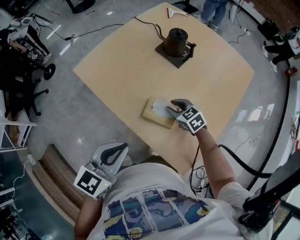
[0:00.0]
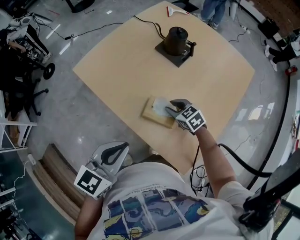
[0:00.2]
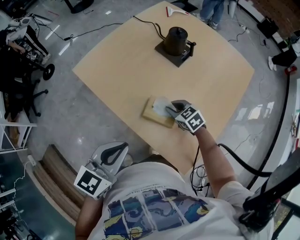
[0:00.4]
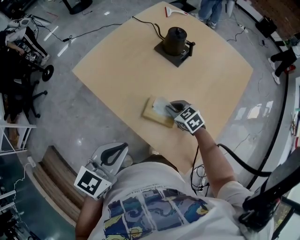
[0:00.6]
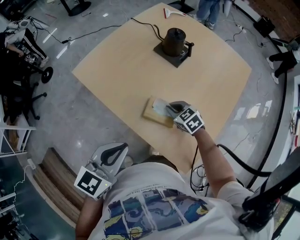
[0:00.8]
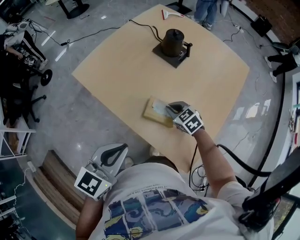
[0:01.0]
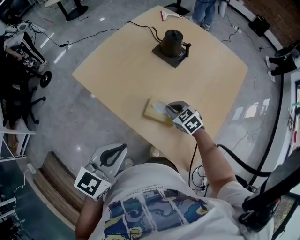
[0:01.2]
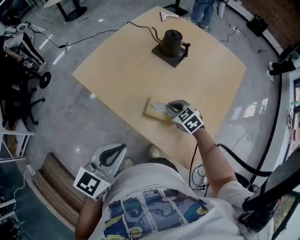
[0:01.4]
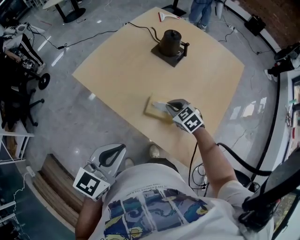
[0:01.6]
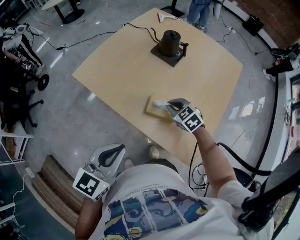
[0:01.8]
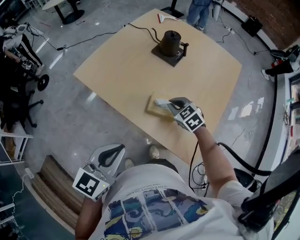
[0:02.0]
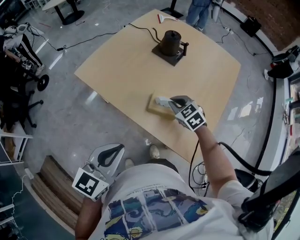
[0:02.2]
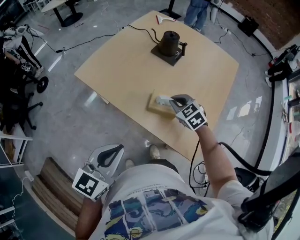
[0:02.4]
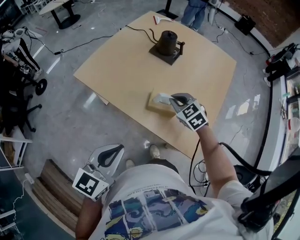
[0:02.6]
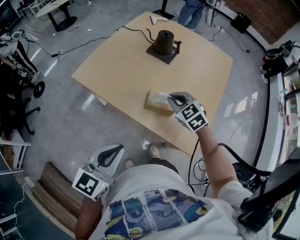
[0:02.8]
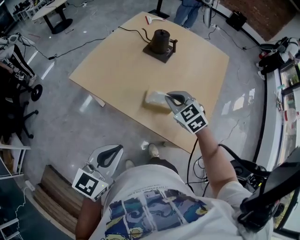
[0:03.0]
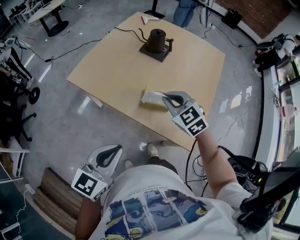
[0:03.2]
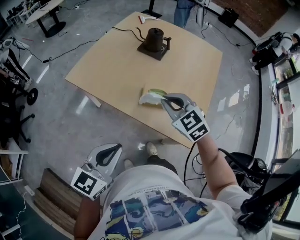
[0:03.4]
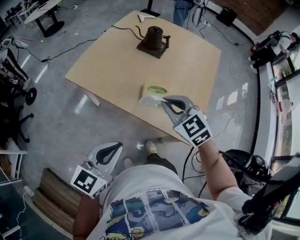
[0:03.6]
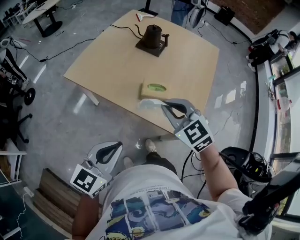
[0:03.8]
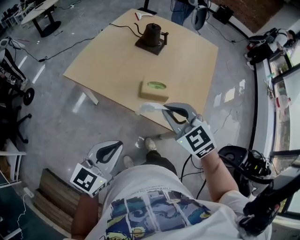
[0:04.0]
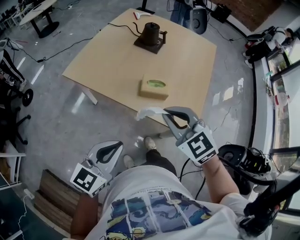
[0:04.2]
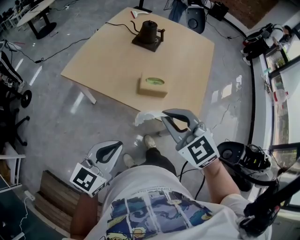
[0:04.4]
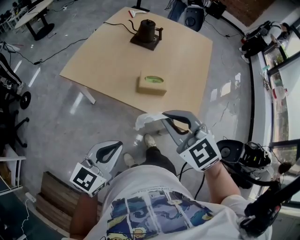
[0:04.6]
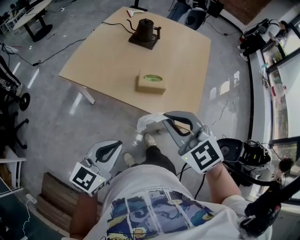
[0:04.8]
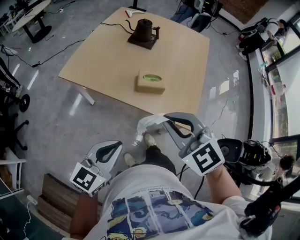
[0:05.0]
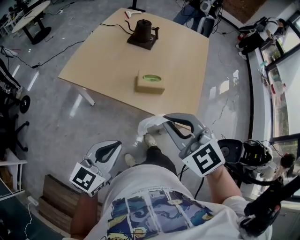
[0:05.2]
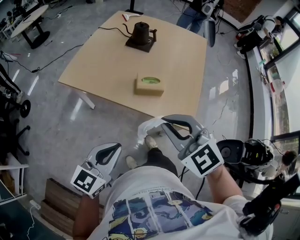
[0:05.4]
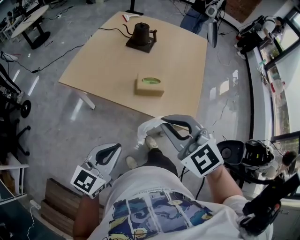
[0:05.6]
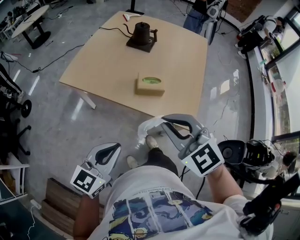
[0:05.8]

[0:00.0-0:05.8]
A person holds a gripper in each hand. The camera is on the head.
0.0 to 1.4 s: The right gripper closes up.
1.4 to 2.8 s: The left gripper is displaced backward and to the left by approximately 10 cm; the right gripper goes about 10 cm upward.
2.8 to 4.4 s: The right gripper travels backward and upward by some 25 cm. The left gripper travels backward by some 5 cm.
4.4 to 5.8 s: There are only small adjustments of the grippers.

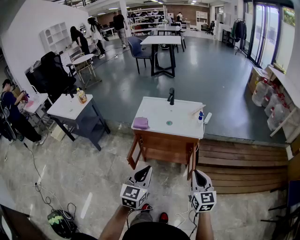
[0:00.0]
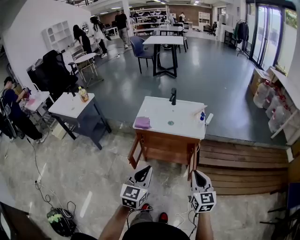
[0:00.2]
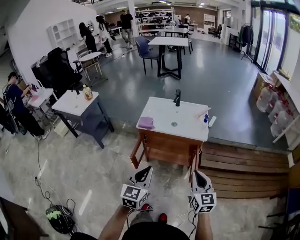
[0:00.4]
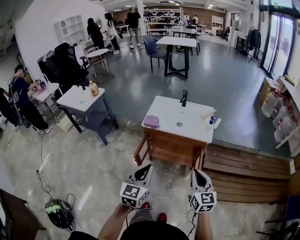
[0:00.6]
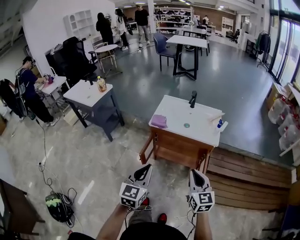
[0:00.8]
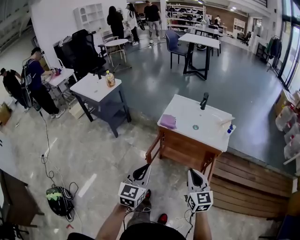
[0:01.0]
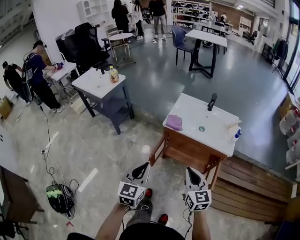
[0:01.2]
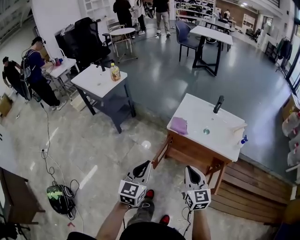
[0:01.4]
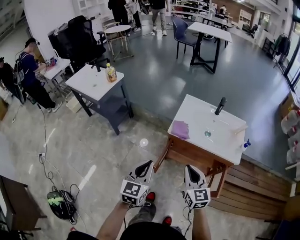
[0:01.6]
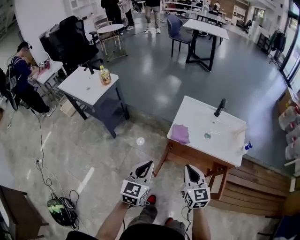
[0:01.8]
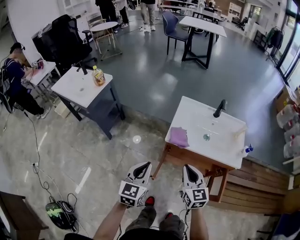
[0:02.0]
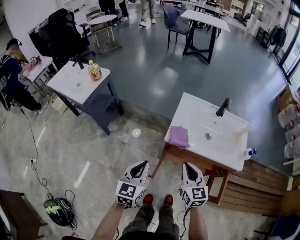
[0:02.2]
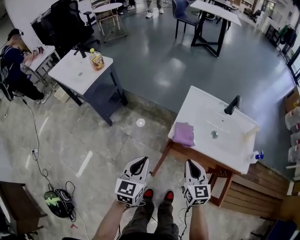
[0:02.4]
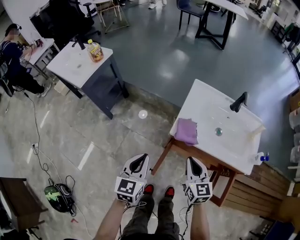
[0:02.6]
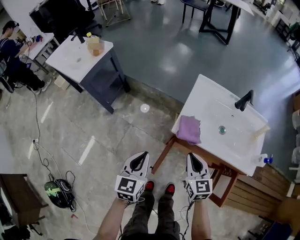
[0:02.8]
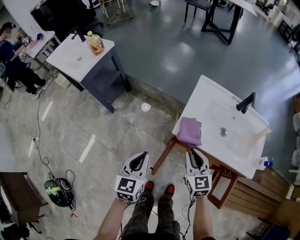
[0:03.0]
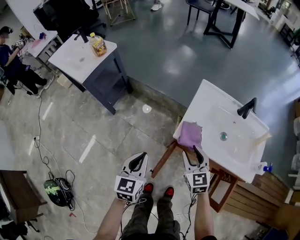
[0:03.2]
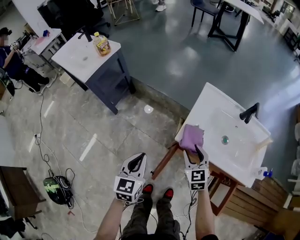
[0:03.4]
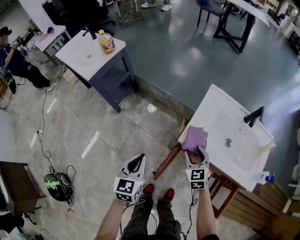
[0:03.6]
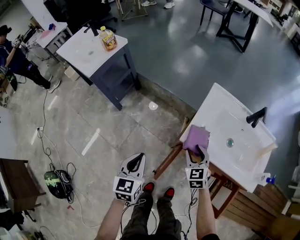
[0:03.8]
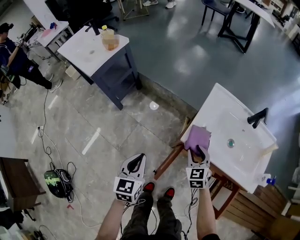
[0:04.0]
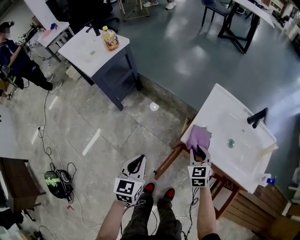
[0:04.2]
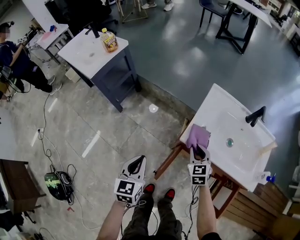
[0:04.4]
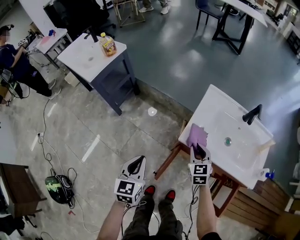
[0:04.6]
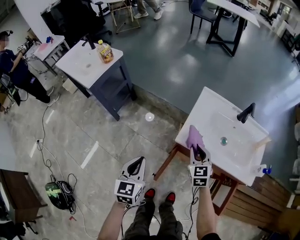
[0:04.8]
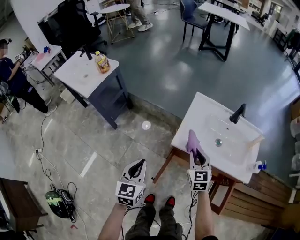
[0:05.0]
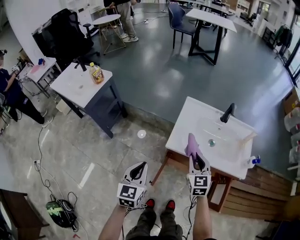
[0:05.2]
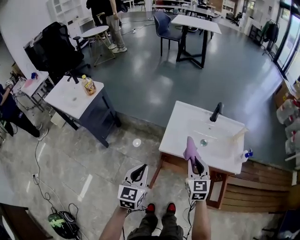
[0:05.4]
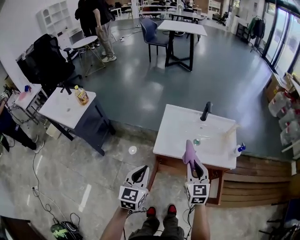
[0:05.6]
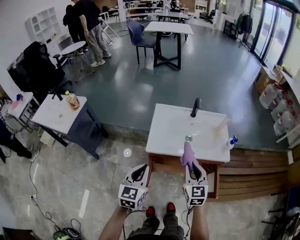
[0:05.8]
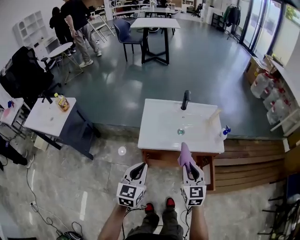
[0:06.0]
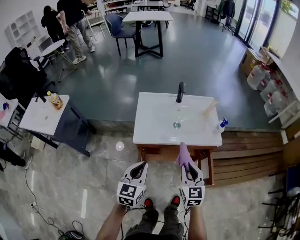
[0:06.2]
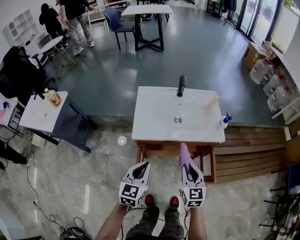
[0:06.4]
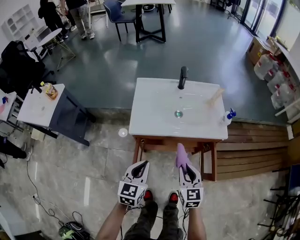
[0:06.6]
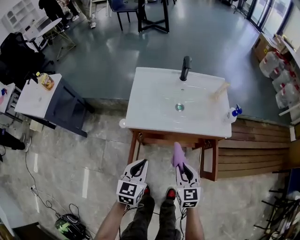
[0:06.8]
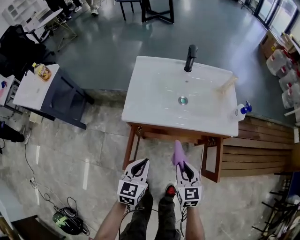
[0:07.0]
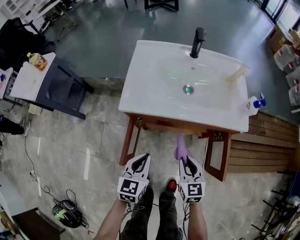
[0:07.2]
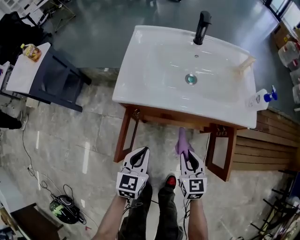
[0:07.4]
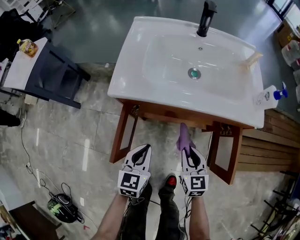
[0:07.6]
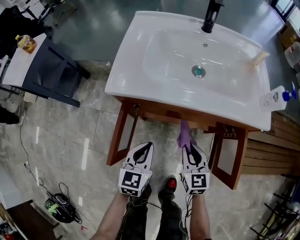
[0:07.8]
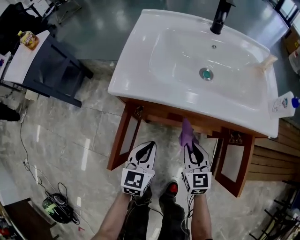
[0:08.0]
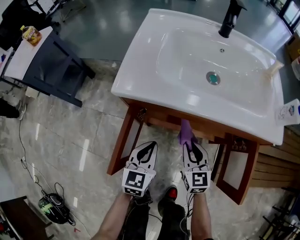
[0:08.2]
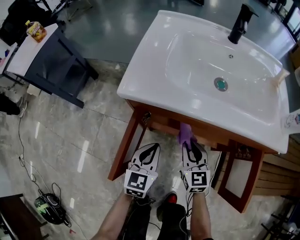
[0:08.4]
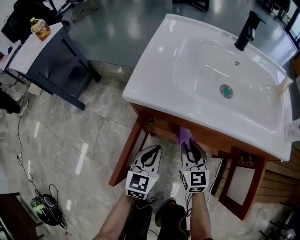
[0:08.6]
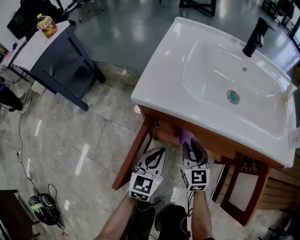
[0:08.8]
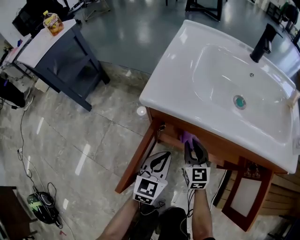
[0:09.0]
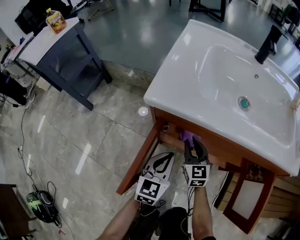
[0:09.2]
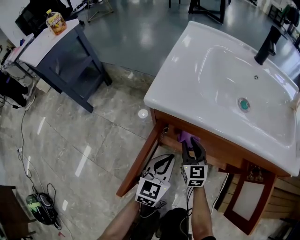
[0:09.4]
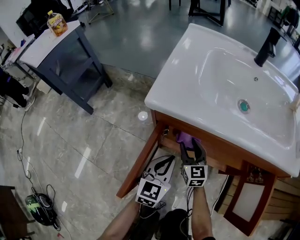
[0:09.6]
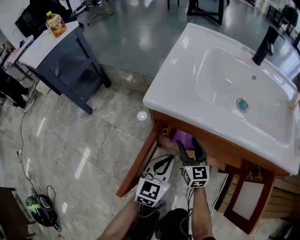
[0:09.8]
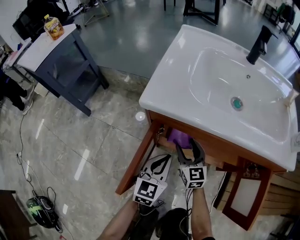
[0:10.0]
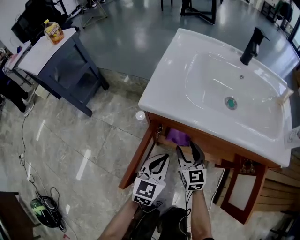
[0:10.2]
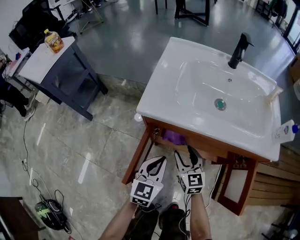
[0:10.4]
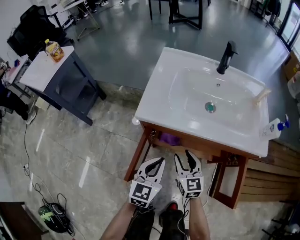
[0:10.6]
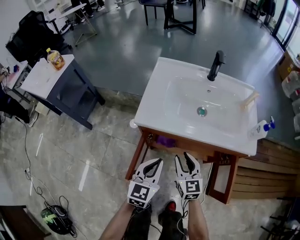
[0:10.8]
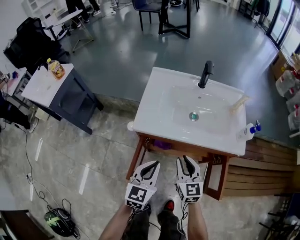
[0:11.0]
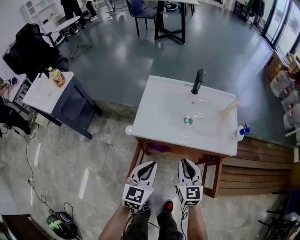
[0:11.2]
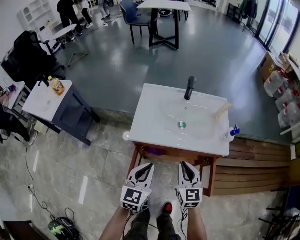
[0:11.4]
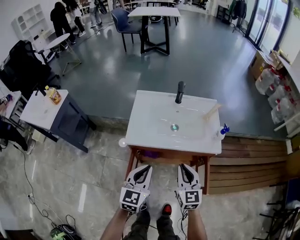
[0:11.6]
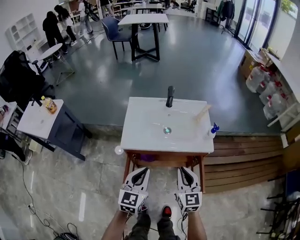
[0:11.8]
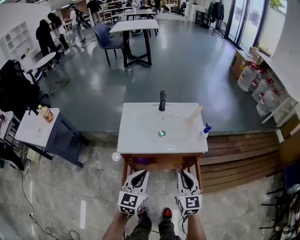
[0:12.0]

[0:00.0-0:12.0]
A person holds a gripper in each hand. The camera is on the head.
0.0 to 1.6 s: Both grippers travel together to the left and forward, roughly 30 cm.
1.6 to 3.0 s: The two grippers go roughly 25 cm forward and downward.
3.0 to 4.4 s: The right gripper is displaced downward and forward by about 10 cm, and opens, then closes once more.
4.4 to 6.0 s: The left gripper shifts by roughly 20 cm, and turns by roughly 30 degrees. Meanwhile the right gripper shifts by roughly 30 cm, and swivels roughly 40 degrees.
6.0 to 7.6 s: The two grippers go roughly 35 cm downward.
7.6 to 9.0 s: The left gripper travels downward and forward by approximately 15 cm; the right gripper shifts roughly 25 cm forward, downward and to the left.
9.0 to 10.4 s: The left gripper travels upward by roughly 10 cm; the right gripper heads upward and backward, covering approximately 10 cm, and opens.
10.4 to 12.0 s: The right gripper travels upward and to the right by roughly 40 cm, swivels about 20 degrees, and closes up, while the left gripper is displaced upward by approximately 35 cm.

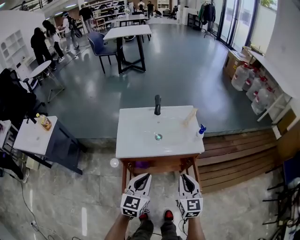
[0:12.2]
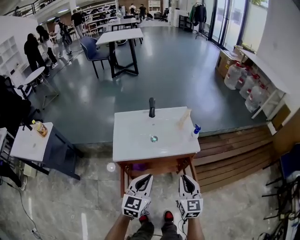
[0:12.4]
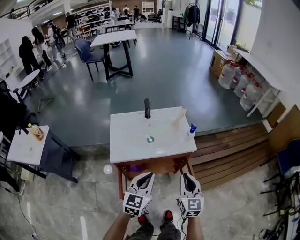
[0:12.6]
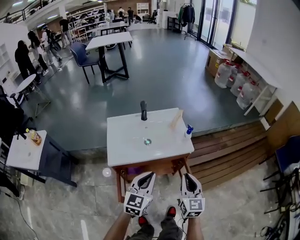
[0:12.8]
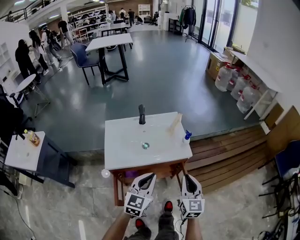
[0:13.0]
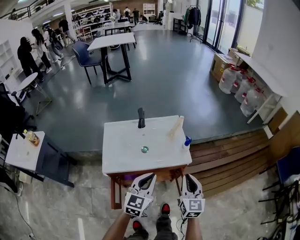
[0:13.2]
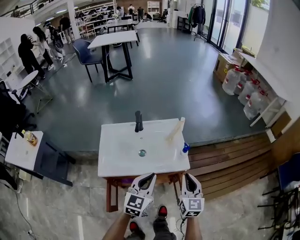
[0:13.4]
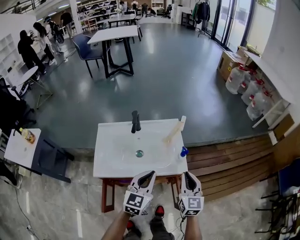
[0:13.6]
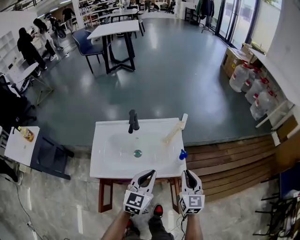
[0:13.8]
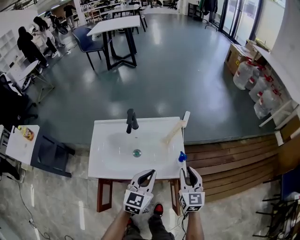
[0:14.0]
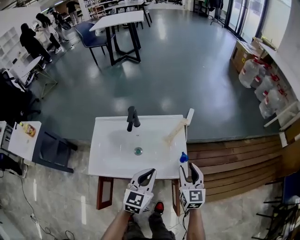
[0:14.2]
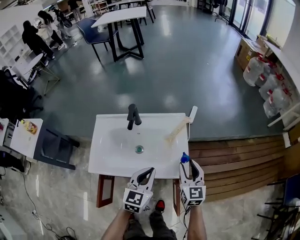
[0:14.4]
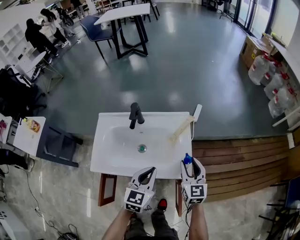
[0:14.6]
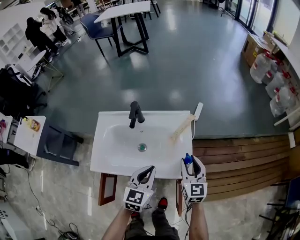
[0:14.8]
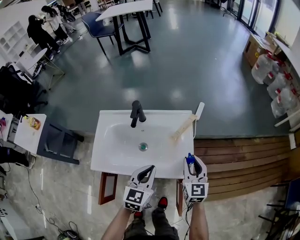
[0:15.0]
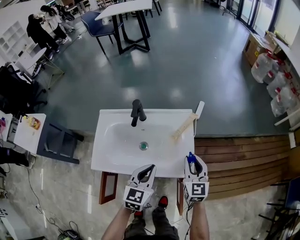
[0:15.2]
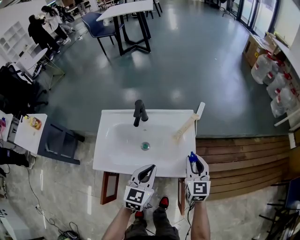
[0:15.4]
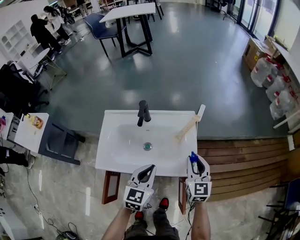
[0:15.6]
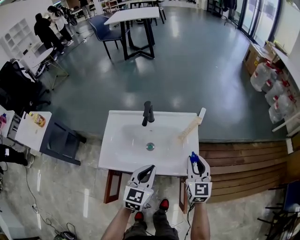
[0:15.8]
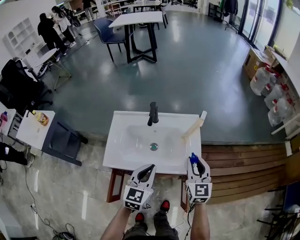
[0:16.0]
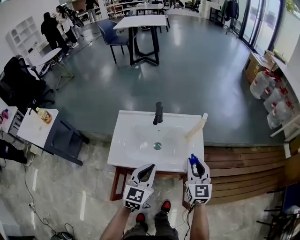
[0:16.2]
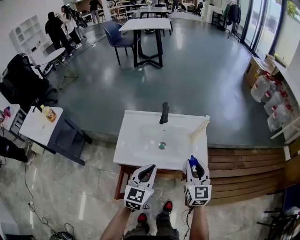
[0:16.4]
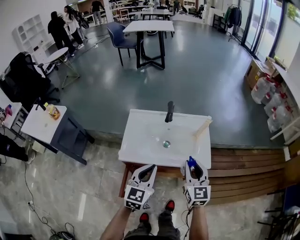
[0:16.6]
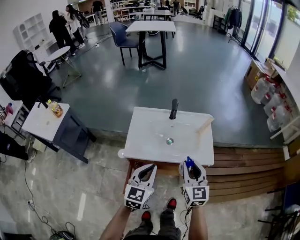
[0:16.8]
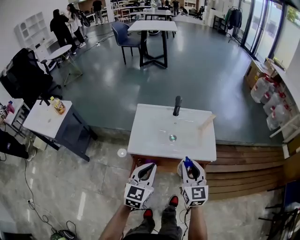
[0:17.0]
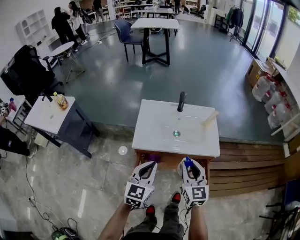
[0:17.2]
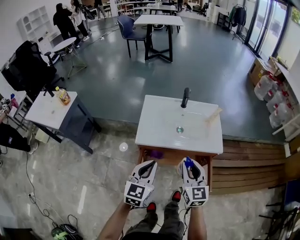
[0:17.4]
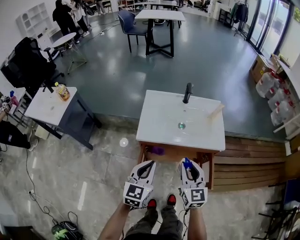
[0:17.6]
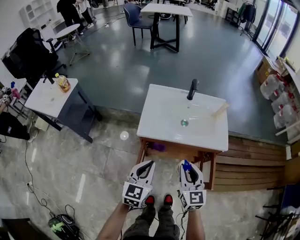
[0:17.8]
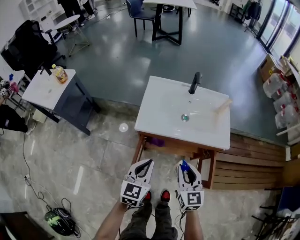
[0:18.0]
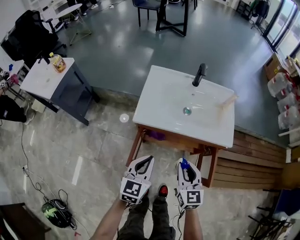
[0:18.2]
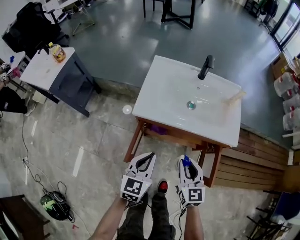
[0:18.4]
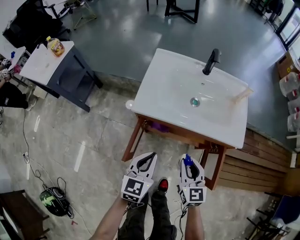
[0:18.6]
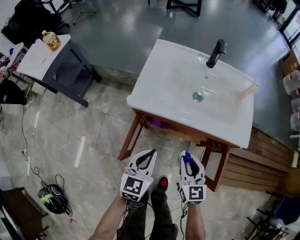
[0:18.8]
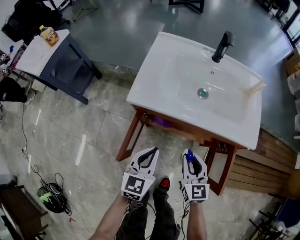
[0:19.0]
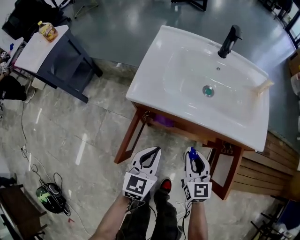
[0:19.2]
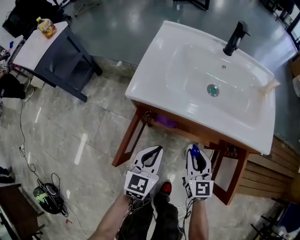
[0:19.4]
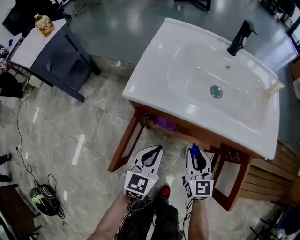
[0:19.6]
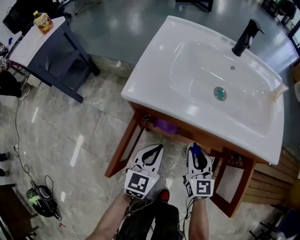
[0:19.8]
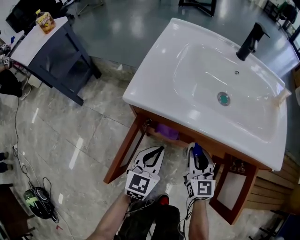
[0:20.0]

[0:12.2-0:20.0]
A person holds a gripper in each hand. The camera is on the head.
12.2 to 13.8 s: Both grippers move forward and to the right, approximately 25 cm.
13.8 to 15.4 s: The left gripper travels downward by about 5 cm. The right gripper moves forward, roughly 10 cm.
15.4 to 16.8 s: The grippers both shift to the left, backward and upward by some 25 cm.
16.8 to 18.4 s: The right gripper is displaced downward, backward and to the left by about 20 cm; the left gripper shifts about 15 cm downward and backward.
18.4 to 20.0 s: The left gripper heads downward, covering about 25 cm, while the right gripper heads downward and forward, covering about 30 cm.
